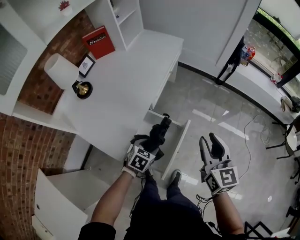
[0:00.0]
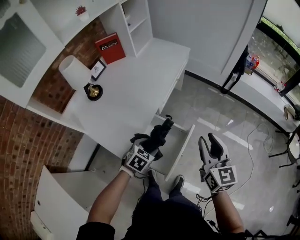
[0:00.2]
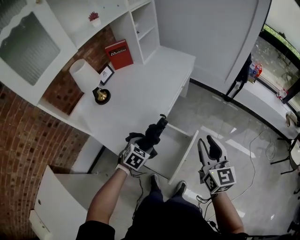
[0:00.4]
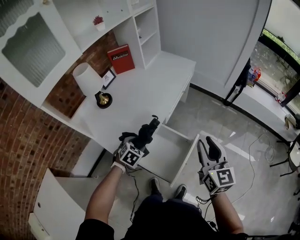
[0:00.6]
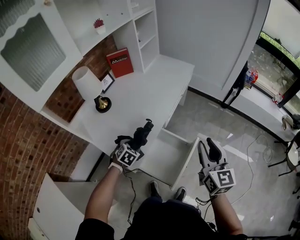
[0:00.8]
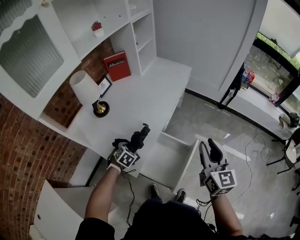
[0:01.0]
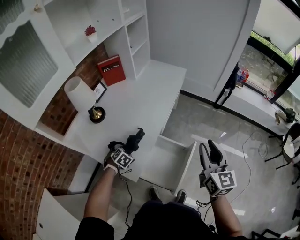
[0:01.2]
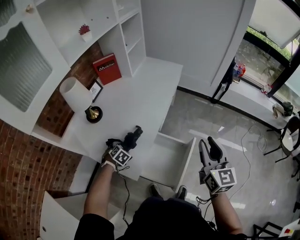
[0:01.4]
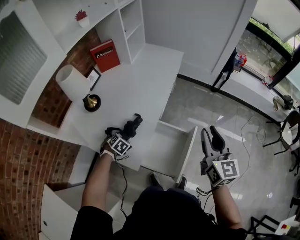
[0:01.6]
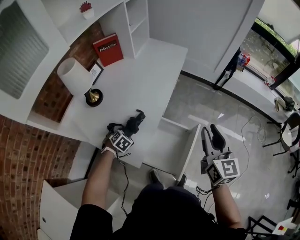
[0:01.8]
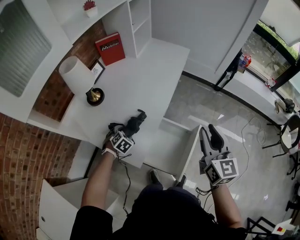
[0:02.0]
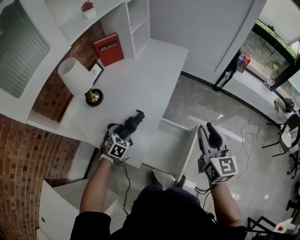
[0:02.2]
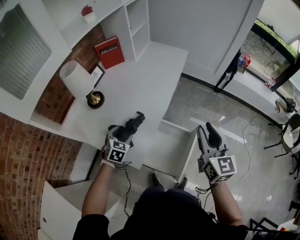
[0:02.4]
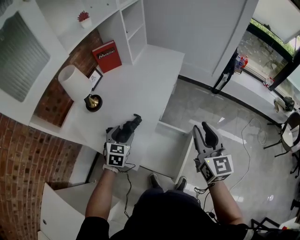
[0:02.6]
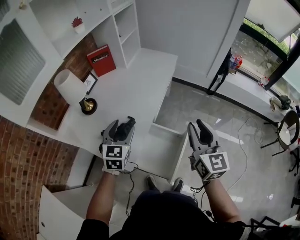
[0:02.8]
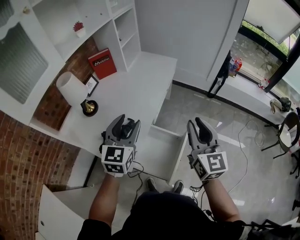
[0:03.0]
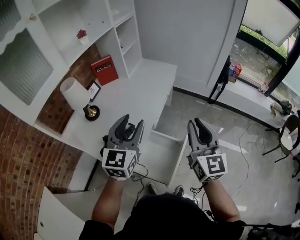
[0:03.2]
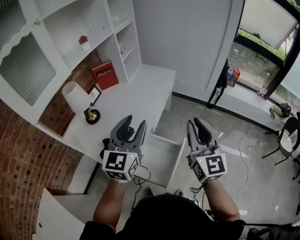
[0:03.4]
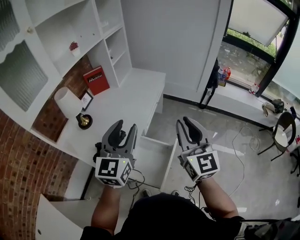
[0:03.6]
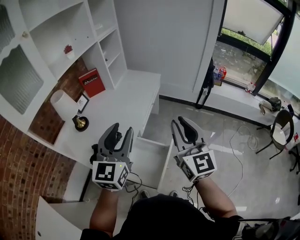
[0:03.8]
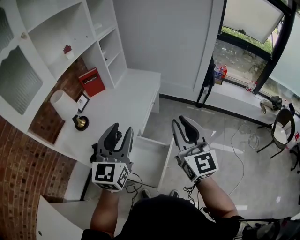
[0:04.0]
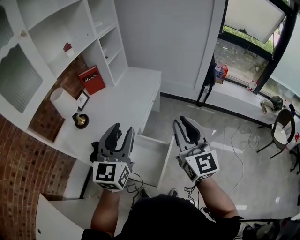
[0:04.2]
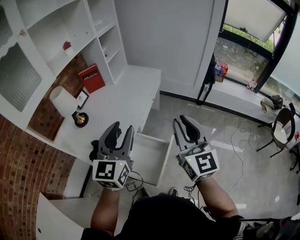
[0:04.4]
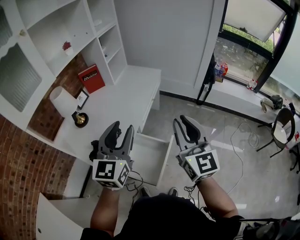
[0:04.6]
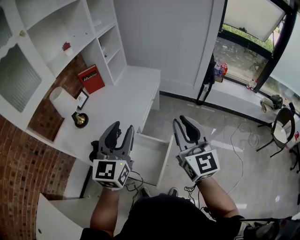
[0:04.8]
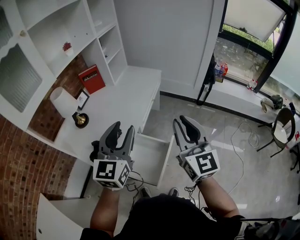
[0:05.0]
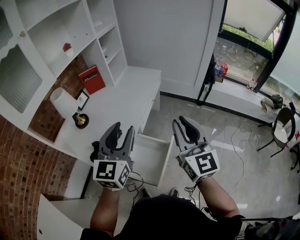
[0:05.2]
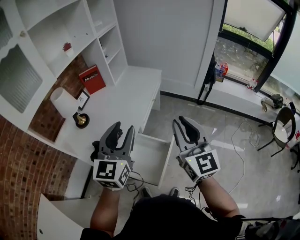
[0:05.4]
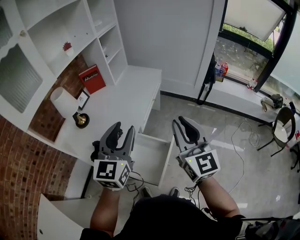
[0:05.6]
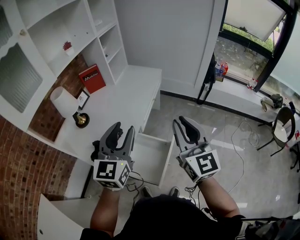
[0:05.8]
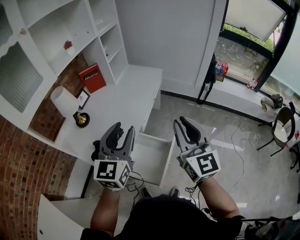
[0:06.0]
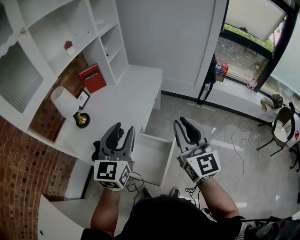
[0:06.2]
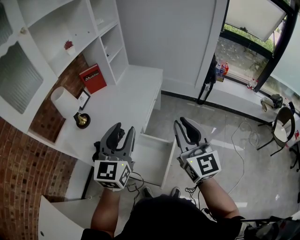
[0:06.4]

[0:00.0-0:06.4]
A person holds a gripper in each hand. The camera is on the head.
0:00.0 to 0:01.6: The left gripper heads to the left, covering roughly 25 cm, and changes its angle by roughly 30 degrees; the right gripper is displaced to the left and upward by about 10 cm.
0:01.6 to 0:03.2: The left gripper travels upward and to the right by approximately 40 cm, and tilts its fingers some 60 degrees upward; the right gripper moves upward, some 10 cm.
0:03.2 to 0:04.8: The right gripper shifts by about 5 cm. The left gripper goes roughly 5 cm to the right.
0:04.8 to 0:06.4: The grippers make only small movements.

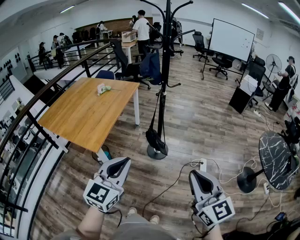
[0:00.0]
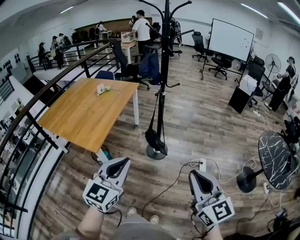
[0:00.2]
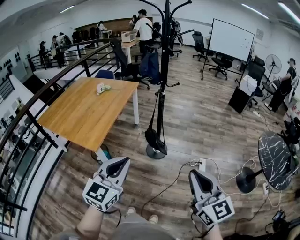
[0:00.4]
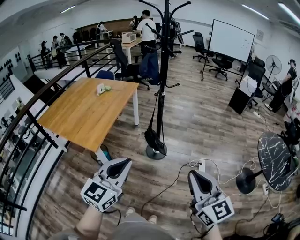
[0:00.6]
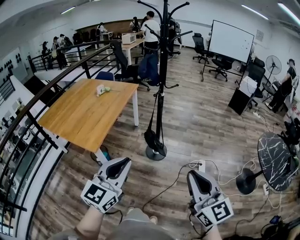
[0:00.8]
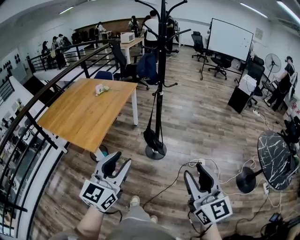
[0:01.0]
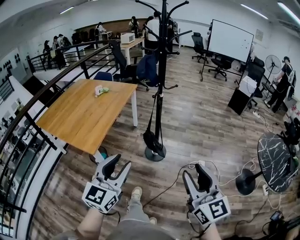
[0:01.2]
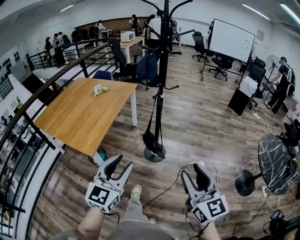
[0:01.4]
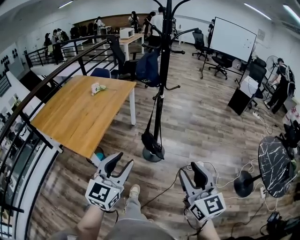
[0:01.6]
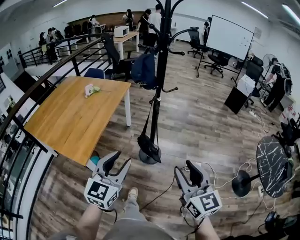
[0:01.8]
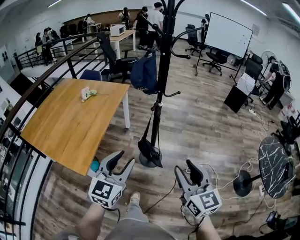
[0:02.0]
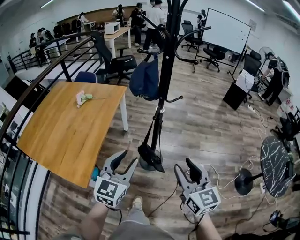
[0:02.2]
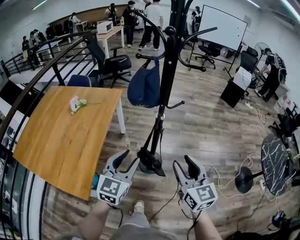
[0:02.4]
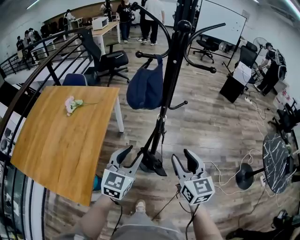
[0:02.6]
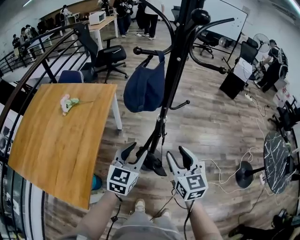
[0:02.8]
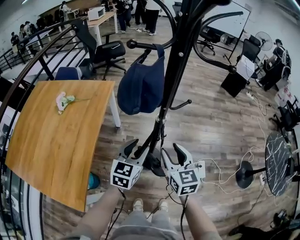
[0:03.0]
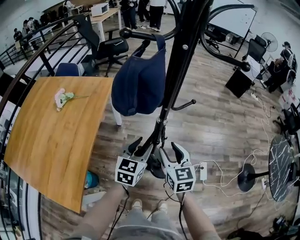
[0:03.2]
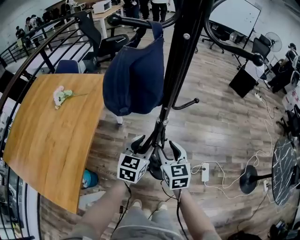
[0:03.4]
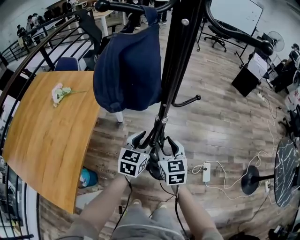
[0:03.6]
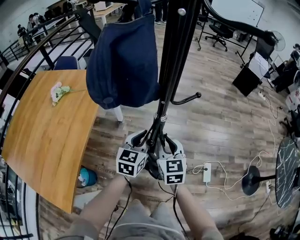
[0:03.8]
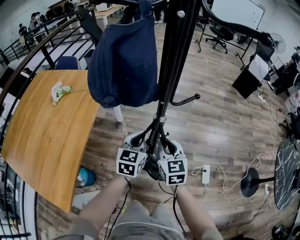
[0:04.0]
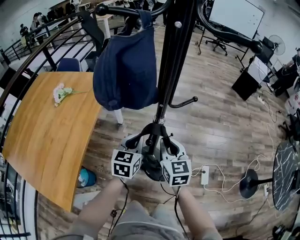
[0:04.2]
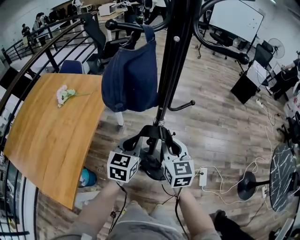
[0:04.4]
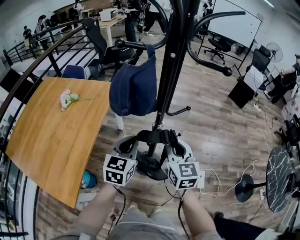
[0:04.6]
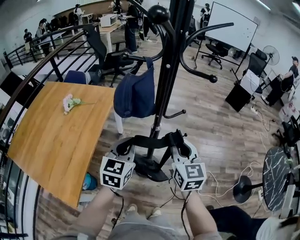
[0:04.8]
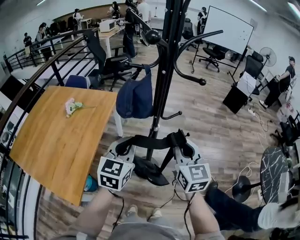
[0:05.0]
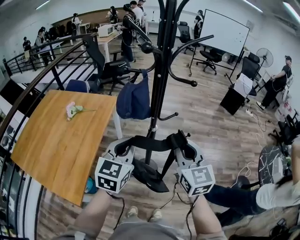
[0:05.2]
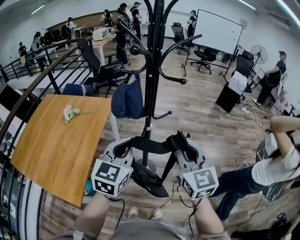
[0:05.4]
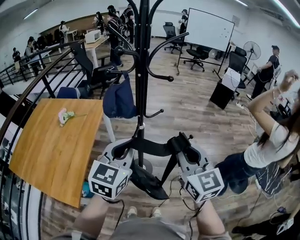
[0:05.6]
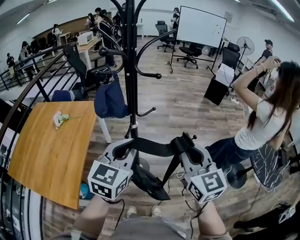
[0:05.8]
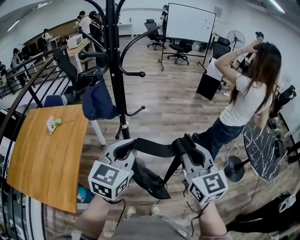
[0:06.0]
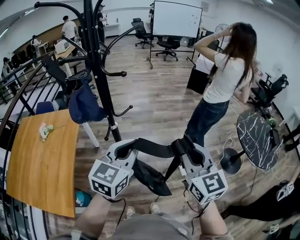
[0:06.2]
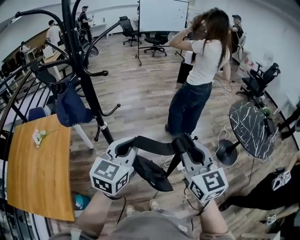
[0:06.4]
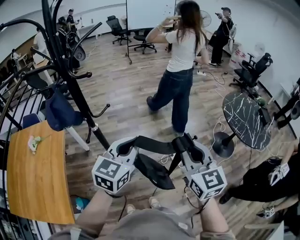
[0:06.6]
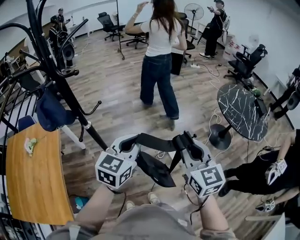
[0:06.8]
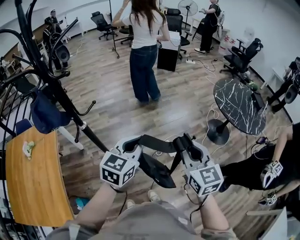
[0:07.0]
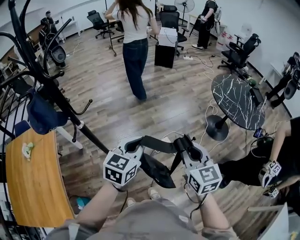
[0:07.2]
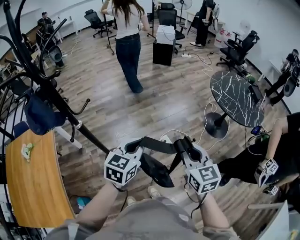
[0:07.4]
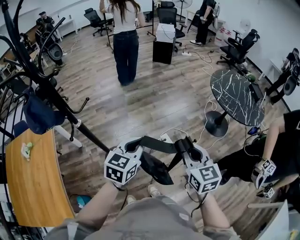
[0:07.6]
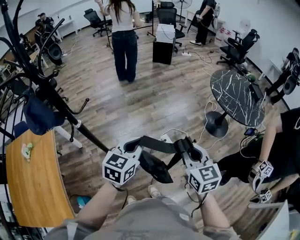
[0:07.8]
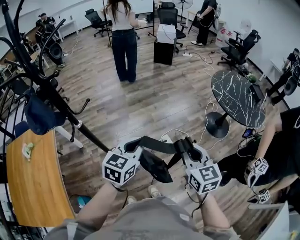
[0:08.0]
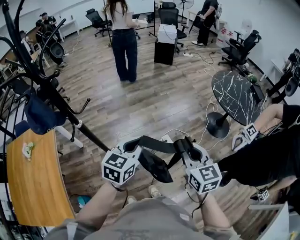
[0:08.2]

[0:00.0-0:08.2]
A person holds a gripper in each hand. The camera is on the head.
0:00.0 to 0:01.6: The two grippers go approximately 10 cm forward. The right gripper opens. Meanwhile the left gripper opens its fingers.
0:01.6 to 0:03.2: The two grippers travel together, forward, some 40 cm. Both grippers travel together downward, approximately 20 cm. The right gripper rotates roughly 20 degrees. The left gripper turns by some 20 degrees.
0:03.2 to 0:05.0: Both grippers move upward, some 20 cm. The right gripper closes up. Meanwhile the left gripper closes its fingers.
0:05.0 to 0:06.6: The right gripper moves roughly 30 cm, and swivels roughly 20 degrees. Meanwhile the left gripper changes place by approximately 30 cm, and swivels approximately 30 degrees.
0:06.6 to 0:08.2: Both grippers travel together downward and to the right, some 15 cm.

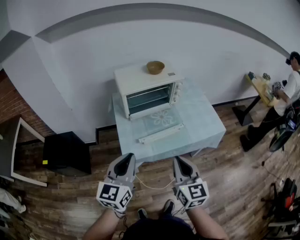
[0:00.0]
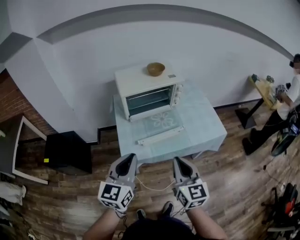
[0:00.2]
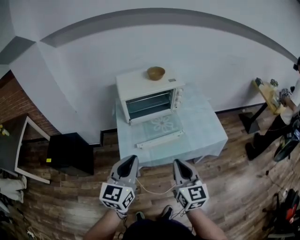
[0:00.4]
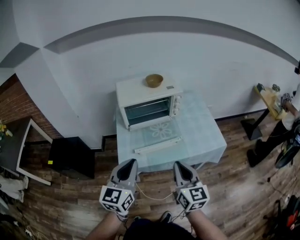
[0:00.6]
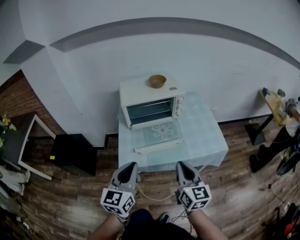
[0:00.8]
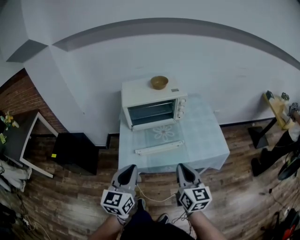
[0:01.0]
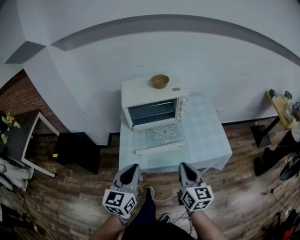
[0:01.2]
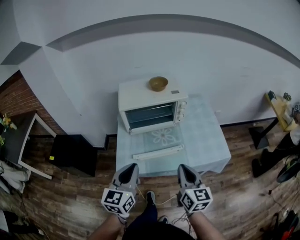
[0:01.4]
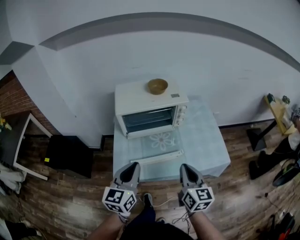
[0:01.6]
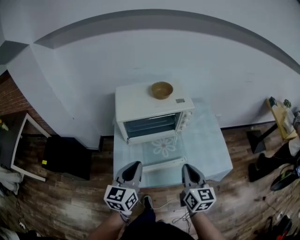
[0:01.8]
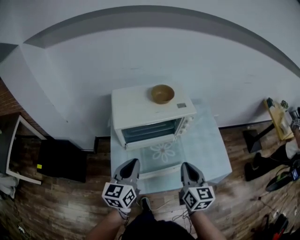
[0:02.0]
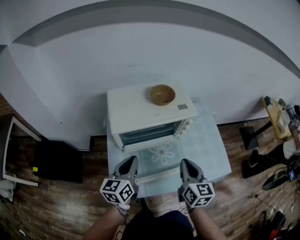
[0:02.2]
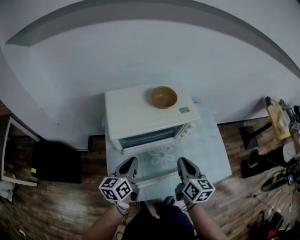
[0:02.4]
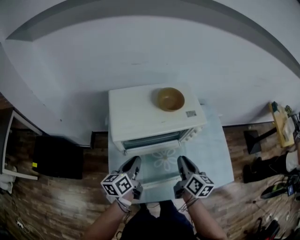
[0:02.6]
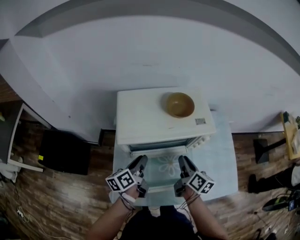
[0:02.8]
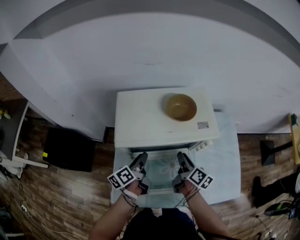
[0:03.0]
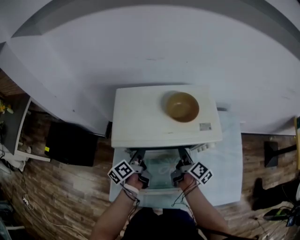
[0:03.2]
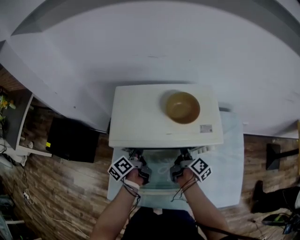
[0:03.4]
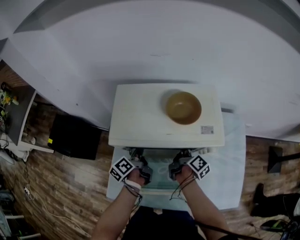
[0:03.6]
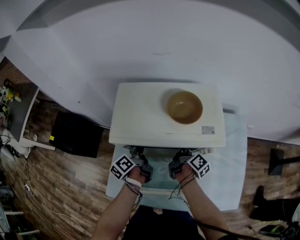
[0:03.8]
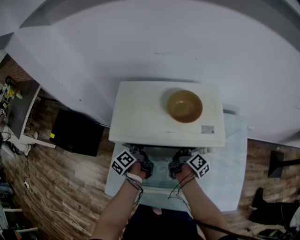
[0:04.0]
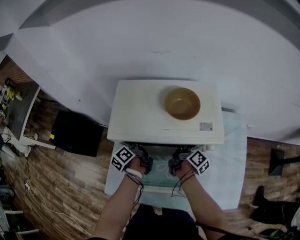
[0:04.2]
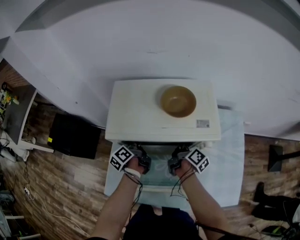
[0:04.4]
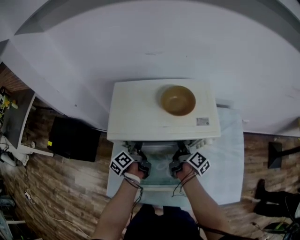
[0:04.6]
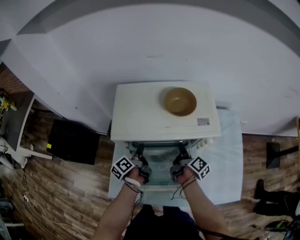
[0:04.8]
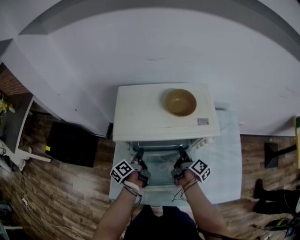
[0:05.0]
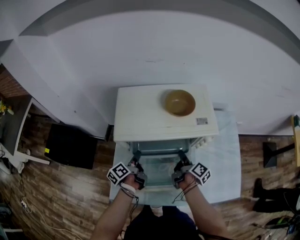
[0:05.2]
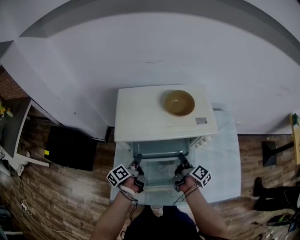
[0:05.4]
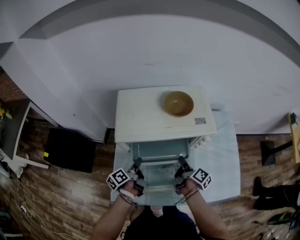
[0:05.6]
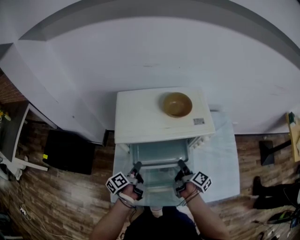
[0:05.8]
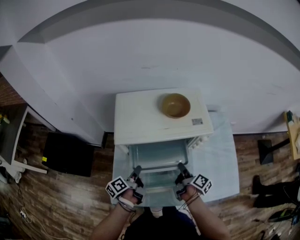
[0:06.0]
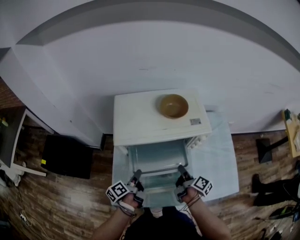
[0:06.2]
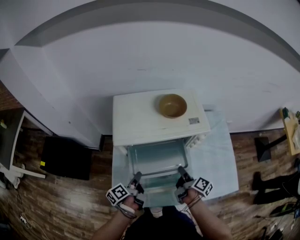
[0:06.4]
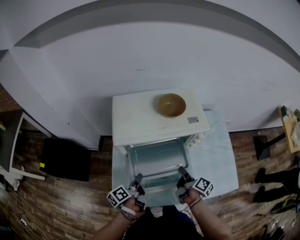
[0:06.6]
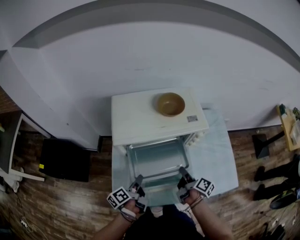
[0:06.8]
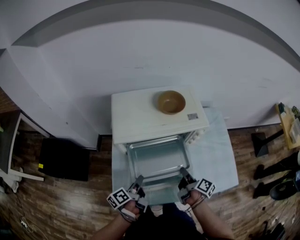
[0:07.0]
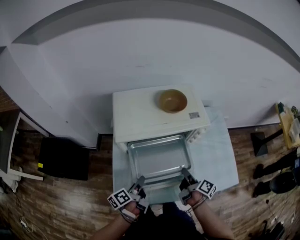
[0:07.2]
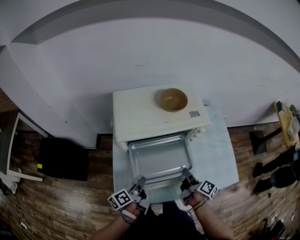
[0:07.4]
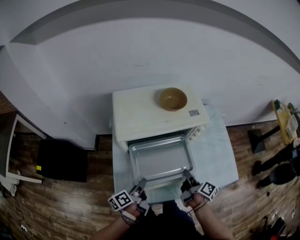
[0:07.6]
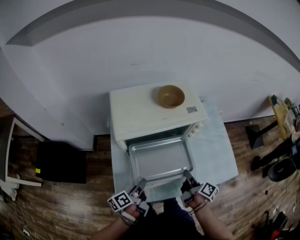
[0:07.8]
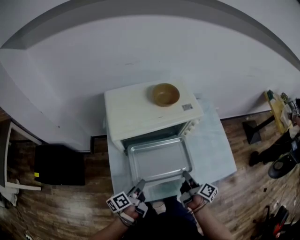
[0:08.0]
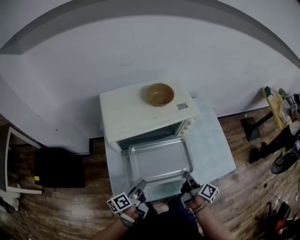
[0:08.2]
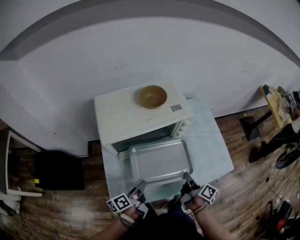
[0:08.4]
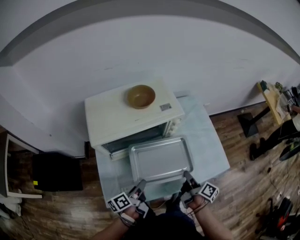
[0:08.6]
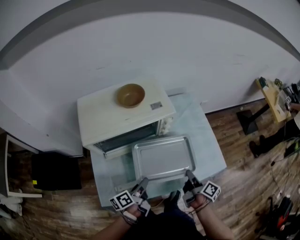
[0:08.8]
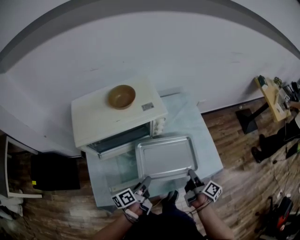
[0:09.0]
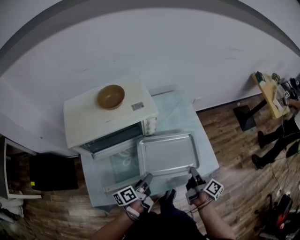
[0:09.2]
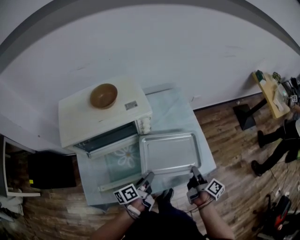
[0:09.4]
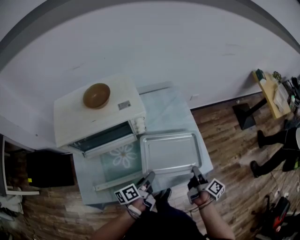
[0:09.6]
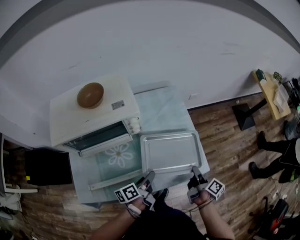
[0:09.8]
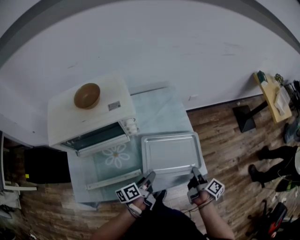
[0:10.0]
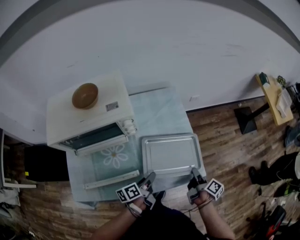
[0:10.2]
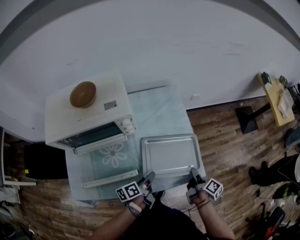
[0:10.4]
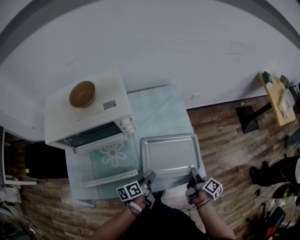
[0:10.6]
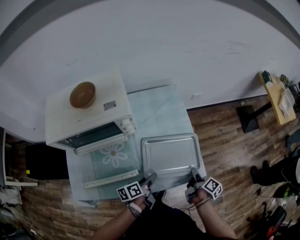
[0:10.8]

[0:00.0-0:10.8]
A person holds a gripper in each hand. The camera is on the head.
0:00.0 to 0:01.6: The two grippers go roughly 20 cm forward and to the right.
0:01.6 to 0:03.0: The two grippers go approximately 35 cm forward and downward. The right gripper rotates around the line of its fingers by roughly 40 degrees, clockwise from behind, and opens; the left gripper rotates around the line of its fingers by approximately 60 degrees, counterclockwise from behind, and opens its fingers.
0:03.0 to 0:04.6: The left gripper is displaced downward by roughly 5 cm; the right gripper is displaced downward and forward by approximately 10 cm.
0:04.6 to 0:06.2: The grippers both shift backward by about 15 cm.
0:06.2 to 0:07.8: The two grippers go some 10 cm backward.
0:07.8 to 0:09.2: Both grippers travel together to the right, approximately 25 cm.
0:09.2 to 0:10.8: The left gripper travels to the right and downward by roughly 15 cm; the right gripper travels to the right, downward and forward by approximately 15 cm.
